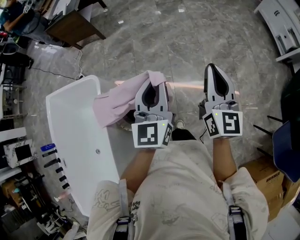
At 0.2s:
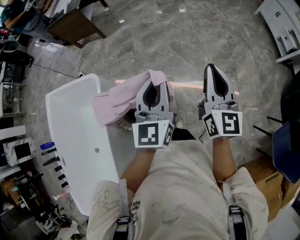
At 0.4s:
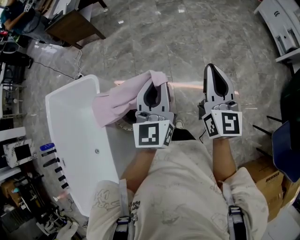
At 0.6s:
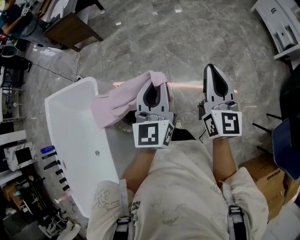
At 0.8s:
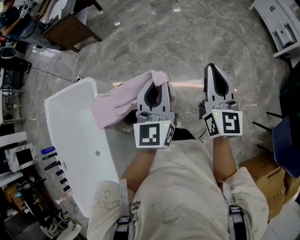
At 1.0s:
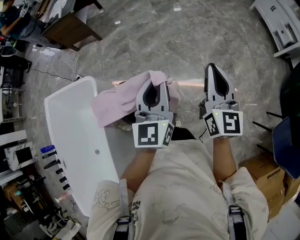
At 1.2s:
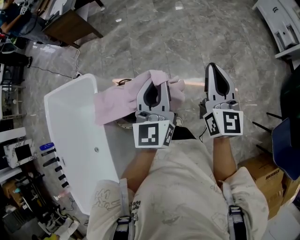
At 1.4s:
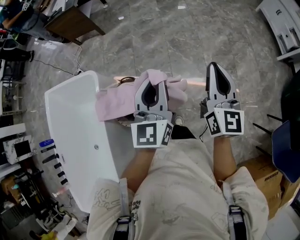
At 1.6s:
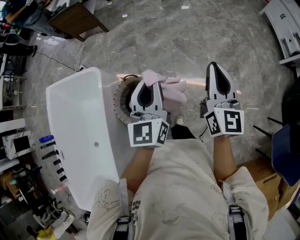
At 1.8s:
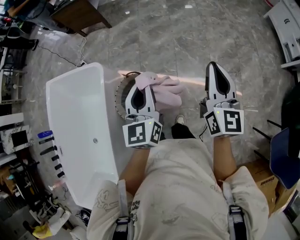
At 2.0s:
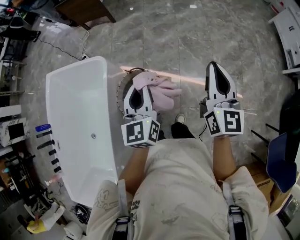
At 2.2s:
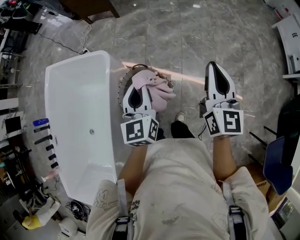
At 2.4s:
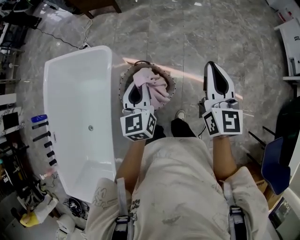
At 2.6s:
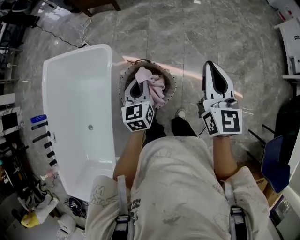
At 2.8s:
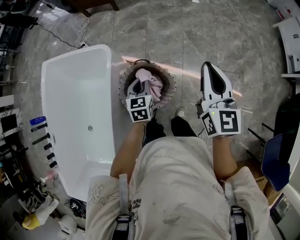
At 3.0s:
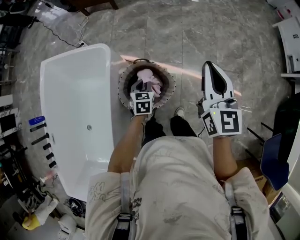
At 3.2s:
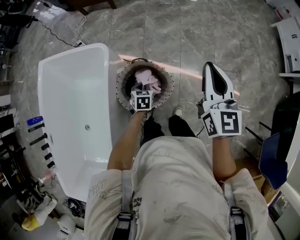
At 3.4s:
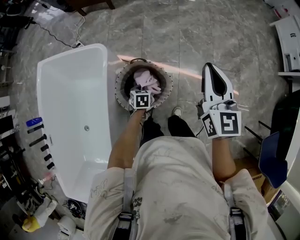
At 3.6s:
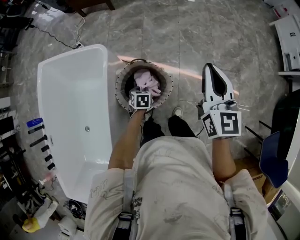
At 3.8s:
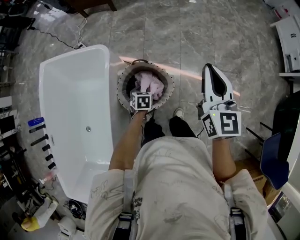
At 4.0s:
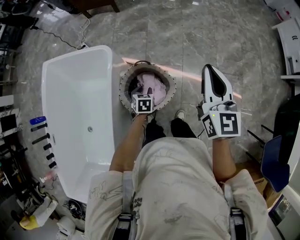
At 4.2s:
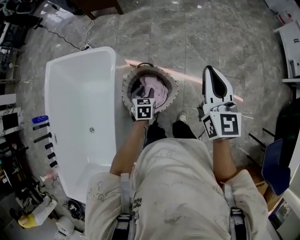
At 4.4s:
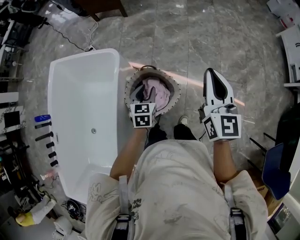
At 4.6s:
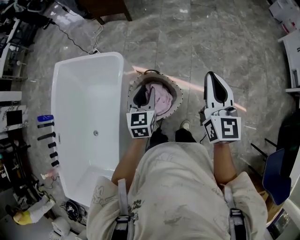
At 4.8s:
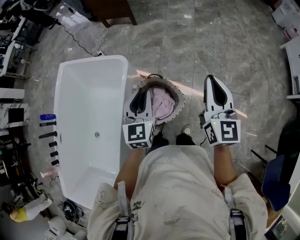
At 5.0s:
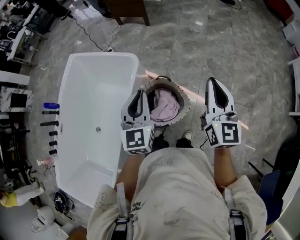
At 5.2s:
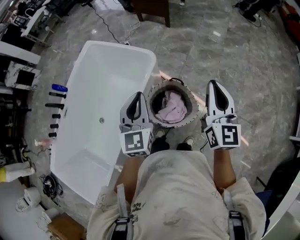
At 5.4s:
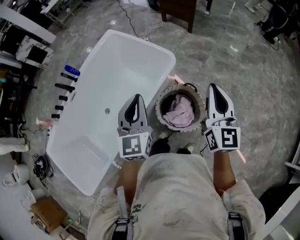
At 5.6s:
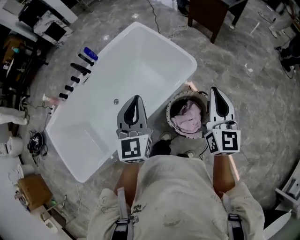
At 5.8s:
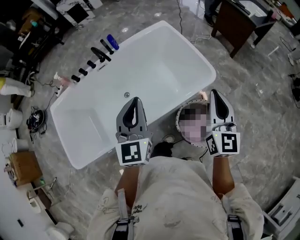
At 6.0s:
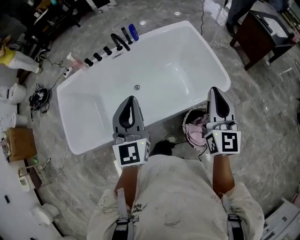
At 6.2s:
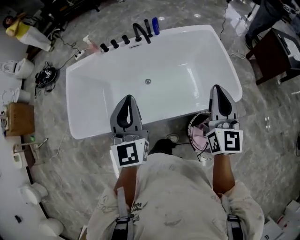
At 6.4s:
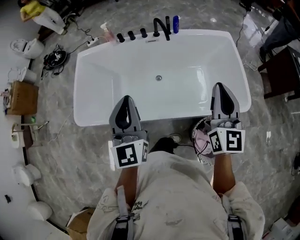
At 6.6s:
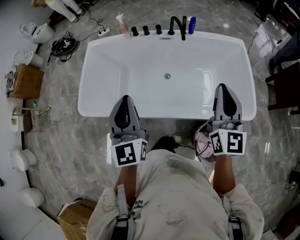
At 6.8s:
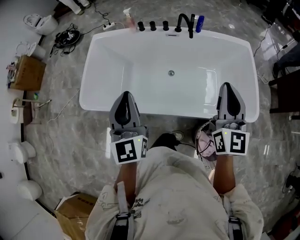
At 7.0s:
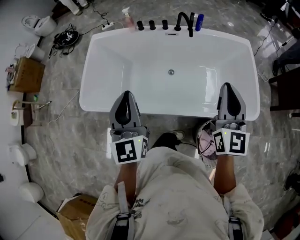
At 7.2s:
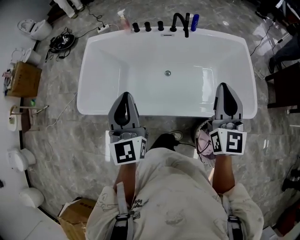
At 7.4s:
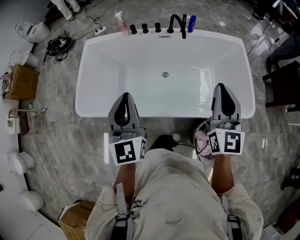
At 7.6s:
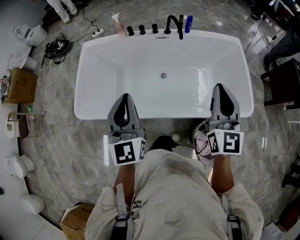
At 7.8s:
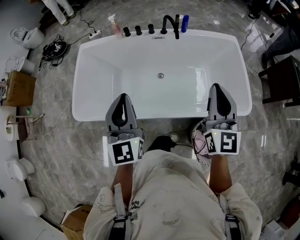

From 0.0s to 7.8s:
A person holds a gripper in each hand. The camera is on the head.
From 0.0s to 1.6s: The grippers make only small movements.
From 1.6s to 3.2s: The left gripper moves downward and to the left, approximately 40 cm, and tips its fingers downward by roughly 50 degrees. The right gripper heads to the left, covering some 15 cm.
From 3.2s to 4.6s: The left gripper heads upward, covering approximately 20 cm, turns by some 30 degrees, and opens up.
From 4.6s to 6.2s: The pair of grippers is taken roughly 50 cm. The left gripper changes its angle by about 80 degrees, and closes. The right gripper rotates approximately 70 degrees.
From 6.2s to 7.8s: The right gripper heads to the left and forward, covering roughly 15 cm; the left gripper is displaced to the left by roughly 15 cm.

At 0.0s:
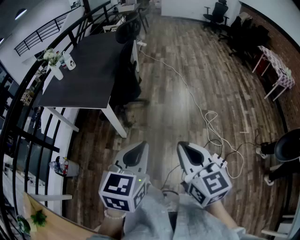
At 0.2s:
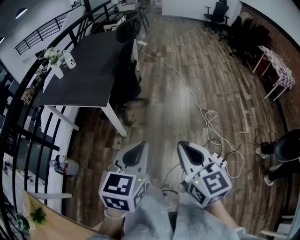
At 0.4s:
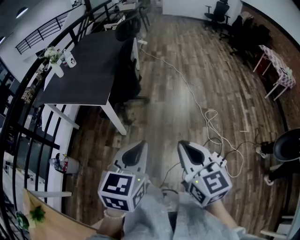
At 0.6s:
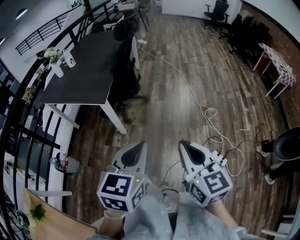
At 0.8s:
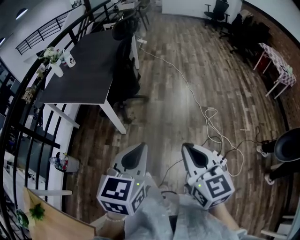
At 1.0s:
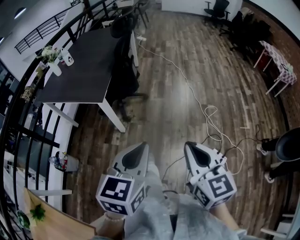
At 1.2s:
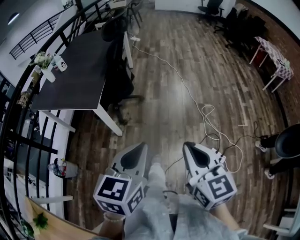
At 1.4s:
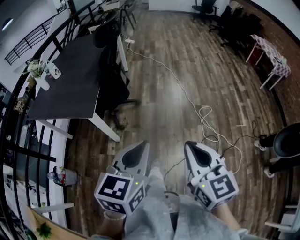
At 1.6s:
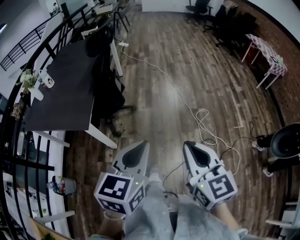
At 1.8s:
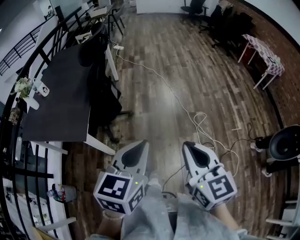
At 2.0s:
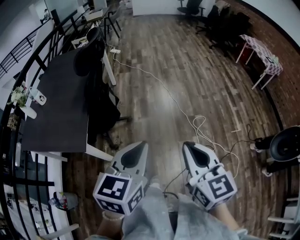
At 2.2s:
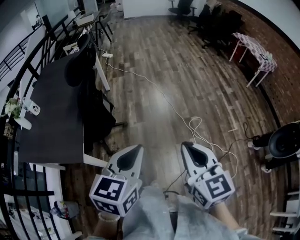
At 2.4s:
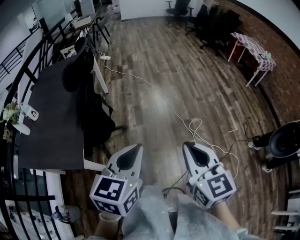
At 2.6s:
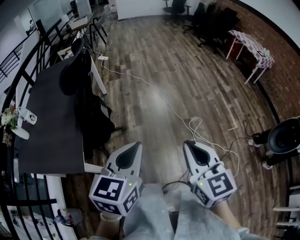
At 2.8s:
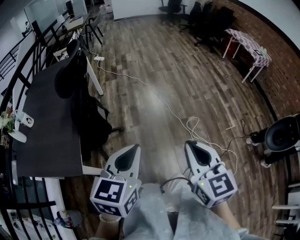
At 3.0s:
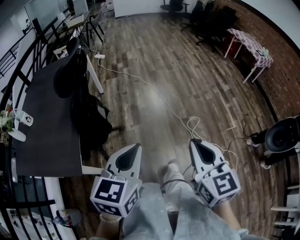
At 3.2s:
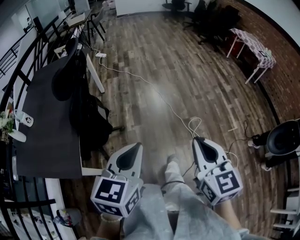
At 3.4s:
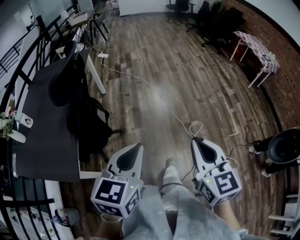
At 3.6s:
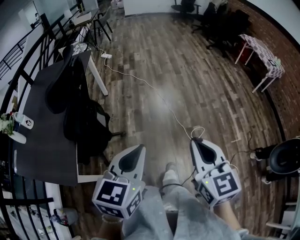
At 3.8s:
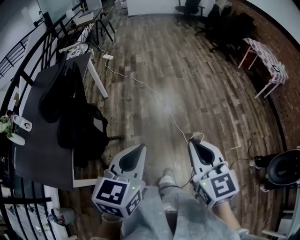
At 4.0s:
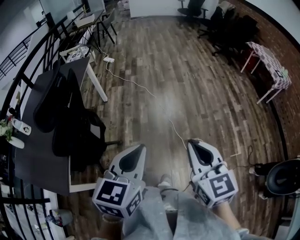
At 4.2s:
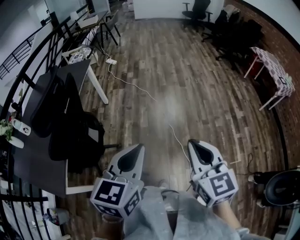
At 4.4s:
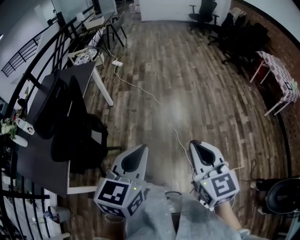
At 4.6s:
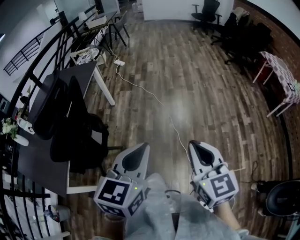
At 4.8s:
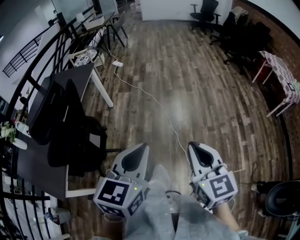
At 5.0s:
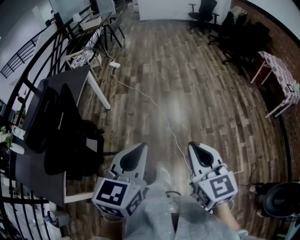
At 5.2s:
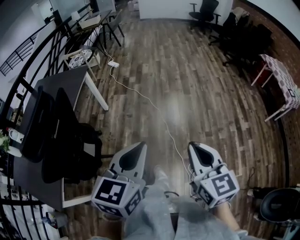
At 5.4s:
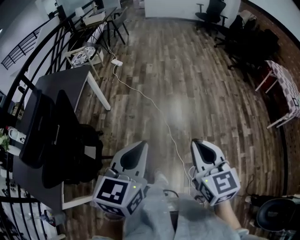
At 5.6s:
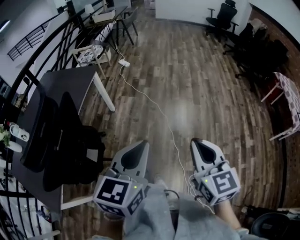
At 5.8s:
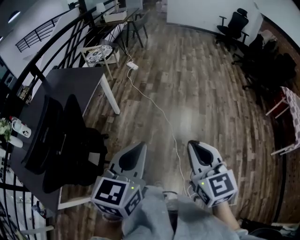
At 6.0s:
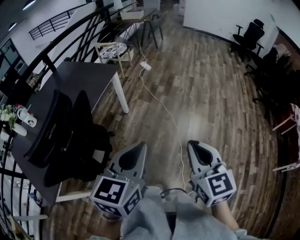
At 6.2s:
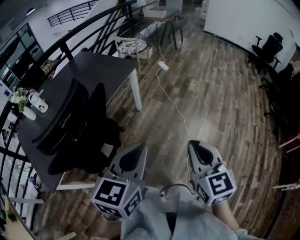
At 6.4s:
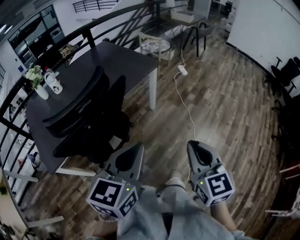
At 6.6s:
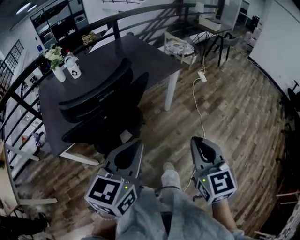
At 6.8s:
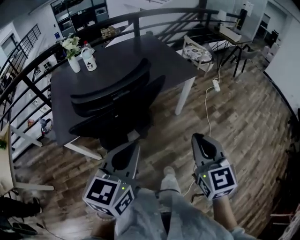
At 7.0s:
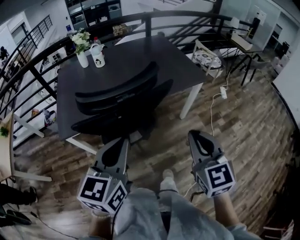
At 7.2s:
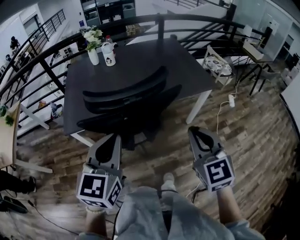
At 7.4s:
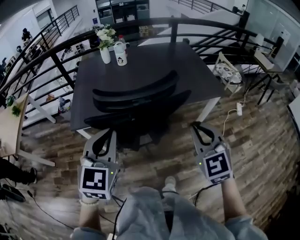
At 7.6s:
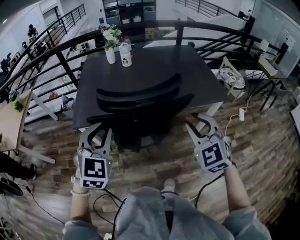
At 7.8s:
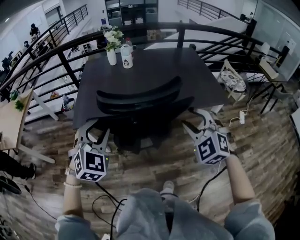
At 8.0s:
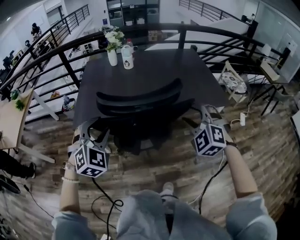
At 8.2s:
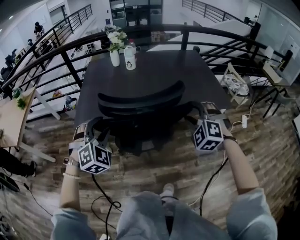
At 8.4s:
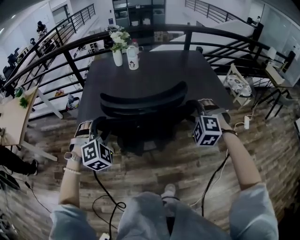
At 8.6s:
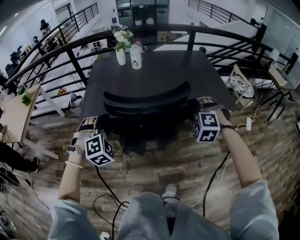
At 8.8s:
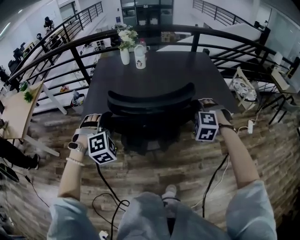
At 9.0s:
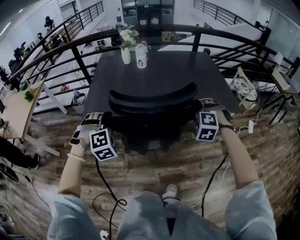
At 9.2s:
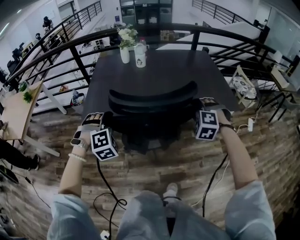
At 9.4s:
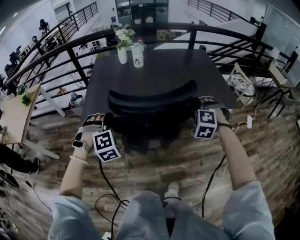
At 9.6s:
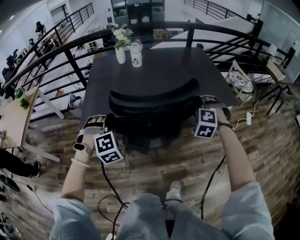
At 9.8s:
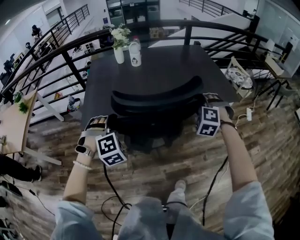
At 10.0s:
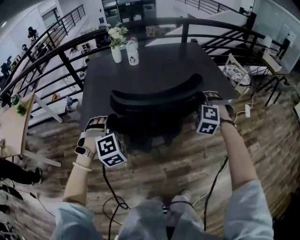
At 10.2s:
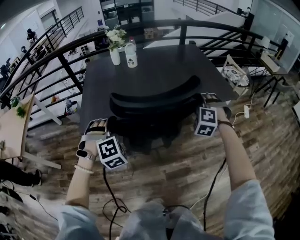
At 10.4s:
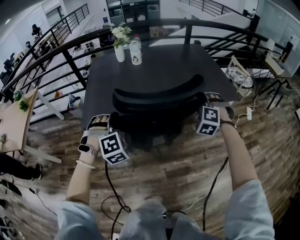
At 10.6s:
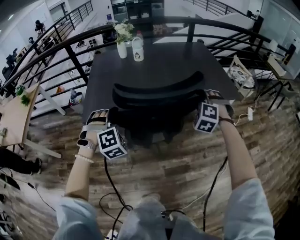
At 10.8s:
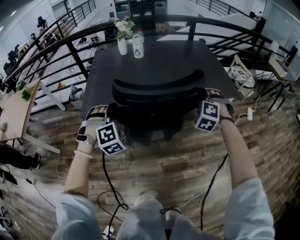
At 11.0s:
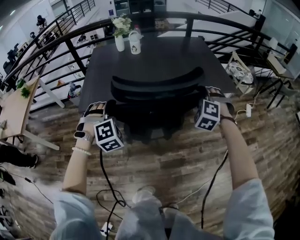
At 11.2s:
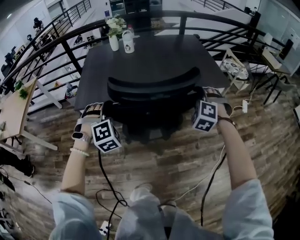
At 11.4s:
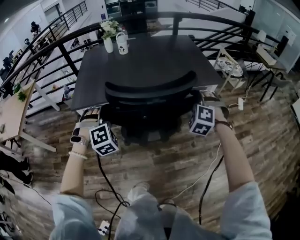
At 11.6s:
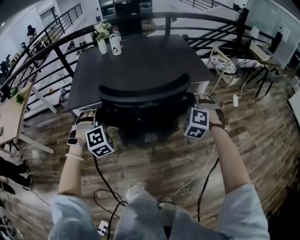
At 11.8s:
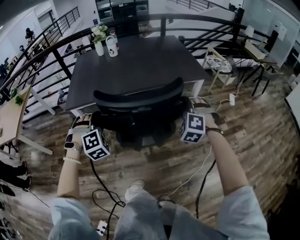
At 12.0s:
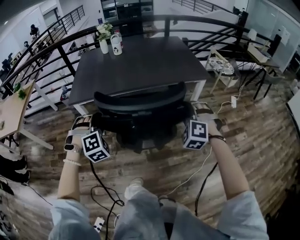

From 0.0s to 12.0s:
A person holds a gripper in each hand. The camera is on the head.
From 0.0s to 1.6s: The two grippers go some 15 cm forward and to the right.
From 1.6s to 3.0s: Both grippers travel together forward, roughly 20 cm.
From 3.0s to 4.4s: The left gripper travels forward and to the right by about 30 cm, while the right gripper travels forward by roughly 30 cm.
From 4.4s to 6.0s: The two grippers go about 30 cm forward.
From 6.0s to 7.6s: The left gripper moves some 35 cm, and turns by roughly 80 degrees. The right gripper ends up approximately 35 cm from where it was, rotates roughly 80 degrees, and opens its fingers.
From 7.6s to 9.0s: The right gripper shifts approximately 15 cm forward and downward, and swivels approximately 50 degrees. Meanwhile the left gripper shifts roughly 15 cm downward, forward and to the left, twists about 40 degrees clockwise, seen from behind, and opens up.
From 9.0s to 10.4s: The grippers make only small movements.
From 10.4s to 12.0s: The right gripper moves backward, some 25 cm; the left gripper travels backward and to the right by roughly 20 cm.

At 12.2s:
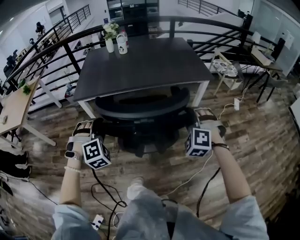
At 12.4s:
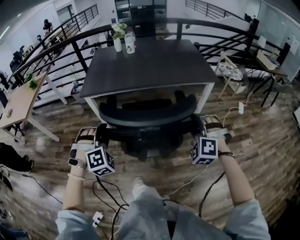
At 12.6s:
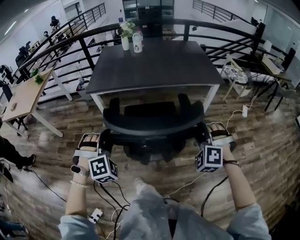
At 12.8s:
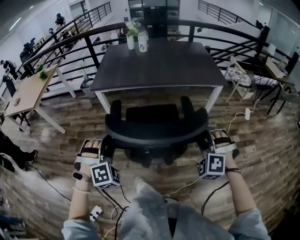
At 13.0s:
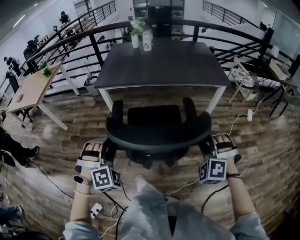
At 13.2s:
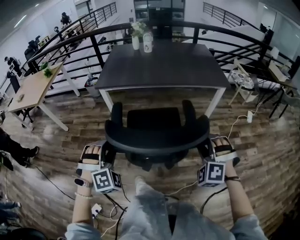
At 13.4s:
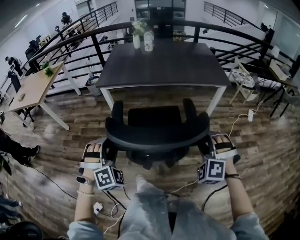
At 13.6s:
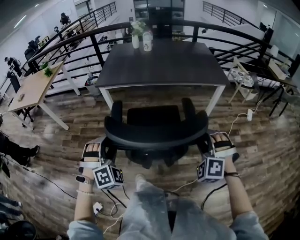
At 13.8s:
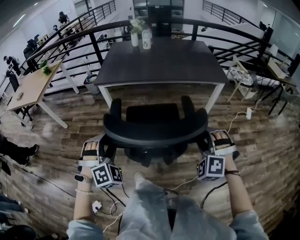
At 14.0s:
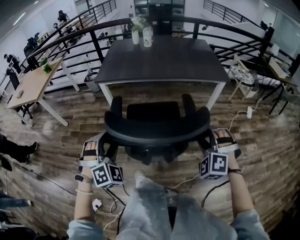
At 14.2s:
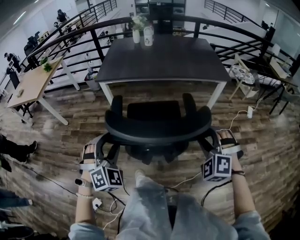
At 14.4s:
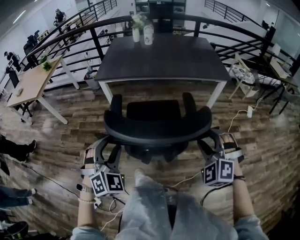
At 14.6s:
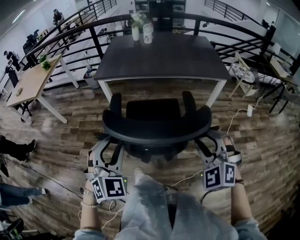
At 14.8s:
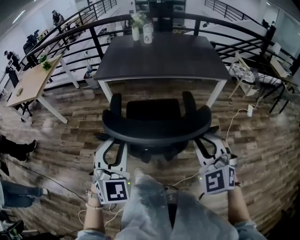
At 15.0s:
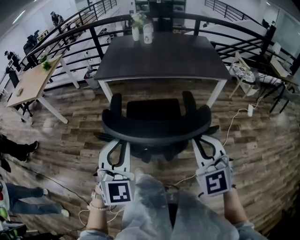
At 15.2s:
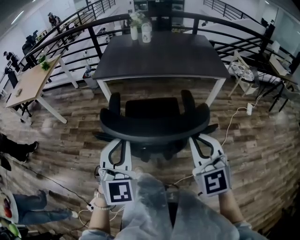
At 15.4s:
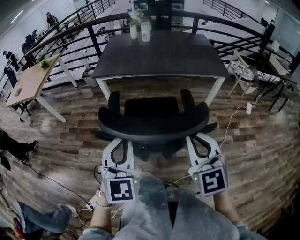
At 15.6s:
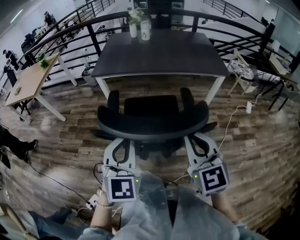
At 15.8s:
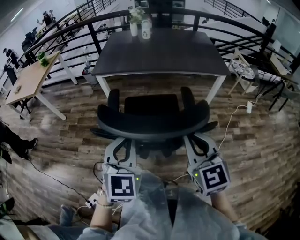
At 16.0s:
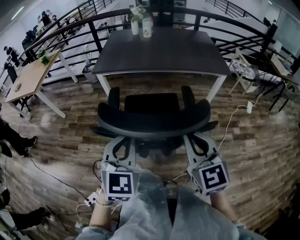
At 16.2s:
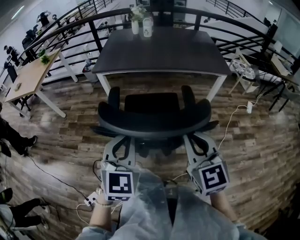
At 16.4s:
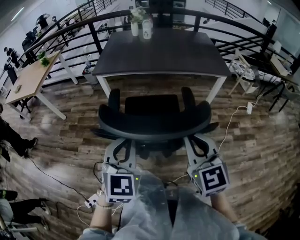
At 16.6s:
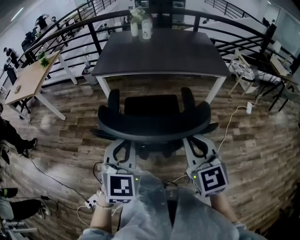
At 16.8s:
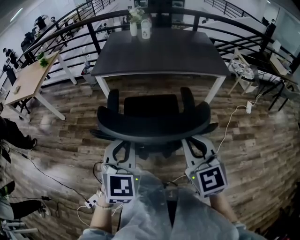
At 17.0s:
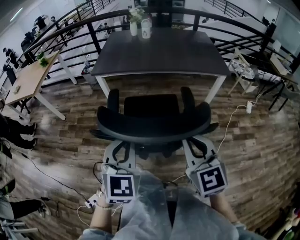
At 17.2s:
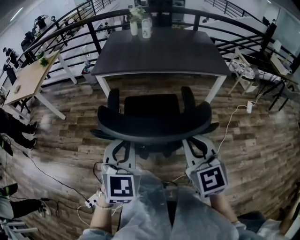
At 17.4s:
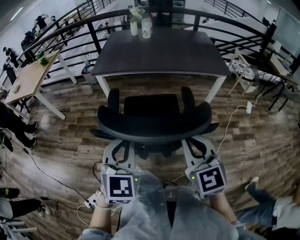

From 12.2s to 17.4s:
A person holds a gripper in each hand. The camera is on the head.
From 12.2s to 14.0s: Both grippers travel together backward, some 15 cm. The left gripper turns by roughly 20 degrees.
From 14.0s to 15.6s: The right gripper shifts about 10 cm upward and to the left, rotates around the line of its fingers by some 60 degrees, clockwise from behind, and closes its fingers, while the left gripper travels upward and to the right by roughly 15 cm, twists approximately 50 degrees counterclockwise, seen from behind, and closes up.
From 15.6s to 17.4s: The grippers make only small movements.
